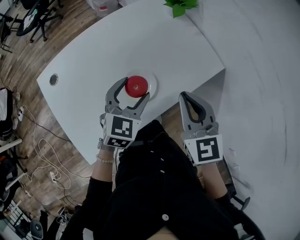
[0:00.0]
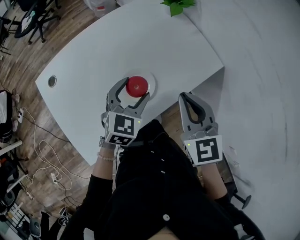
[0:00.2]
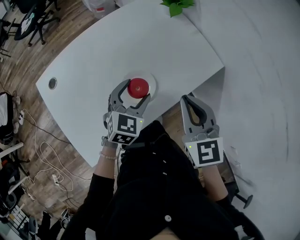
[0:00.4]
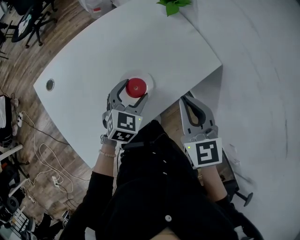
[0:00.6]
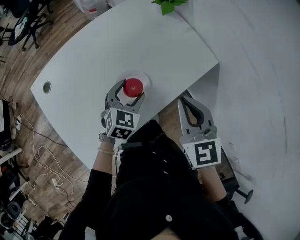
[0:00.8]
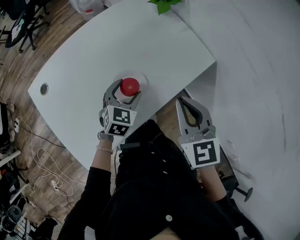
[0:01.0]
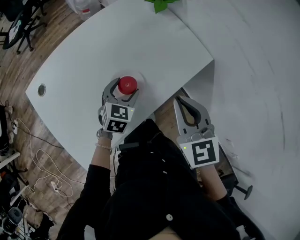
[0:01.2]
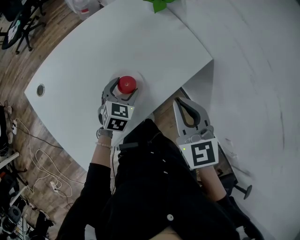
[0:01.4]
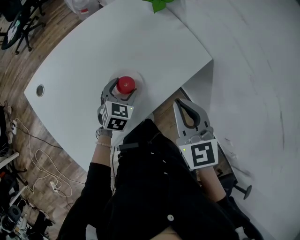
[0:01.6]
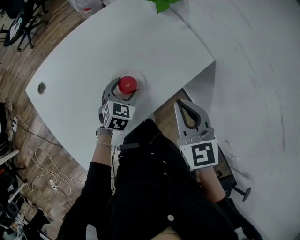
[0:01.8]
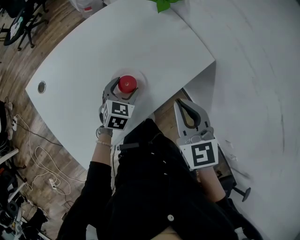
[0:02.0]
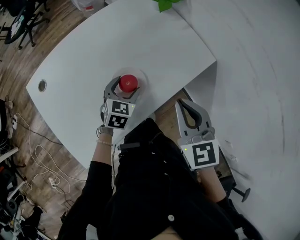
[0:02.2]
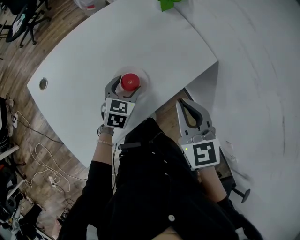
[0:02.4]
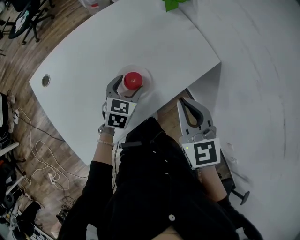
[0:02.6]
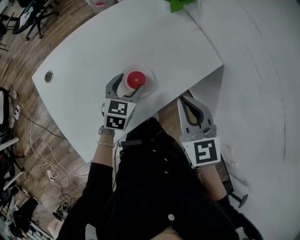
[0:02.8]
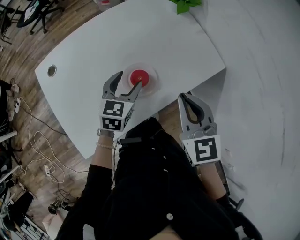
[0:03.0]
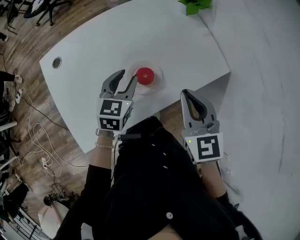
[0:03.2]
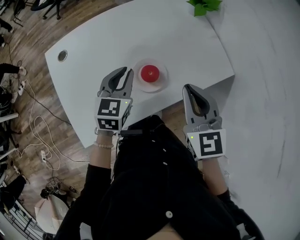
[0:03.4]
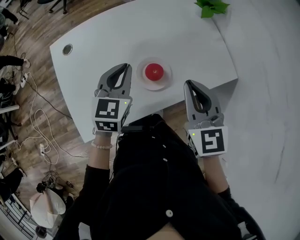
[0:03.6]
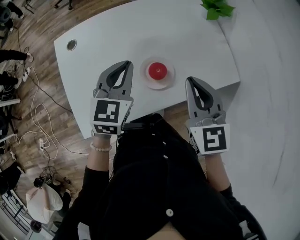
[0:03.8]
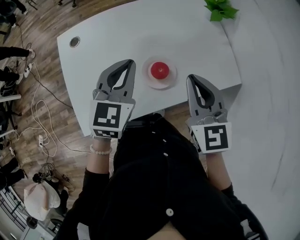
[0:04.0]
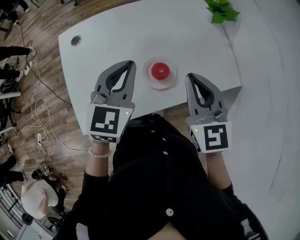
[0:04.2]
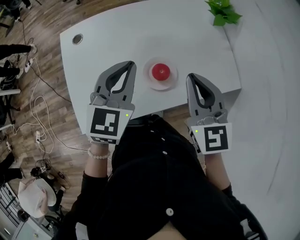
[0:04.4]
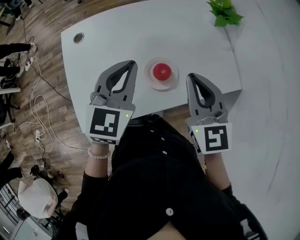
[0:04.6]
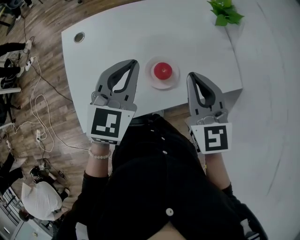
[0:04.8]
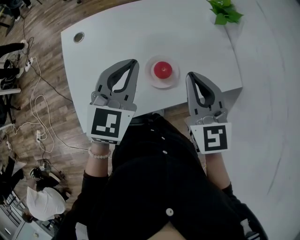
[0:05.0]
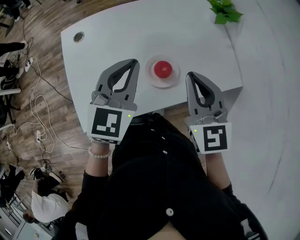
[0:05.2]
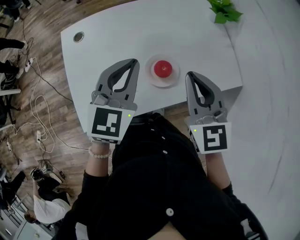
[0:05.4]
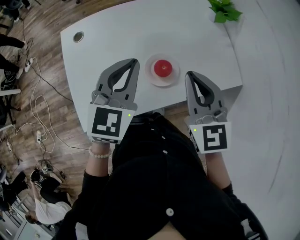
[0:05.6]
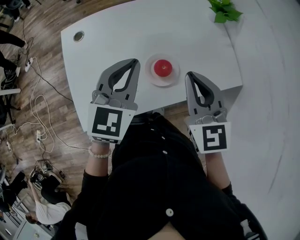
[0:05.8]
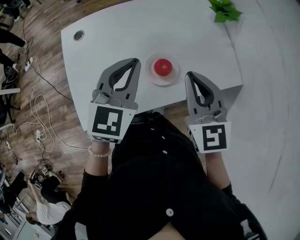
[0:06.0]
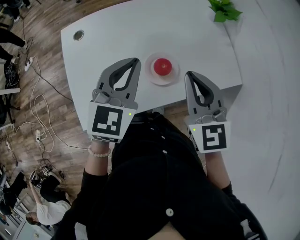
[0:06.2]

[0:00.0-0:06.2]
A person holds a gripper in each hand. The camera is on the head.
0.0 to 1.6 s: The left gripper heads downward, covering approximately 10 cm.
1.6 to 3.2 s: The left gripper moves upward and to the left, approximately 10 cm, rotates approximately 20 degrees, and closes up.
3.2 to 4.6 s: The left gripper is displaced upward by roughly 15 cm, and closes its fingers. The right gripper goes roughly 5 cm to the left.
4.6 to 6.2 s: The grippers make only small movements.

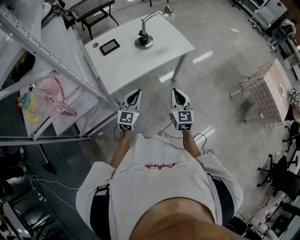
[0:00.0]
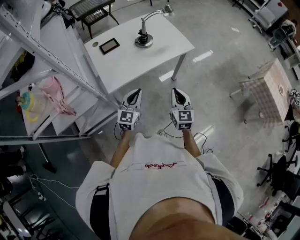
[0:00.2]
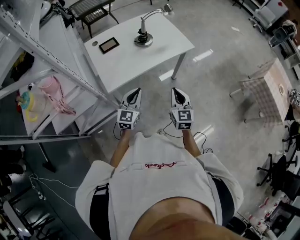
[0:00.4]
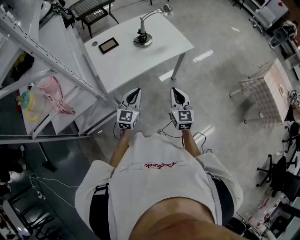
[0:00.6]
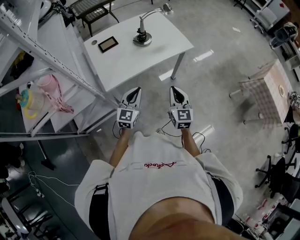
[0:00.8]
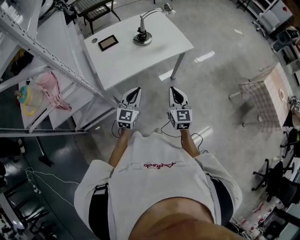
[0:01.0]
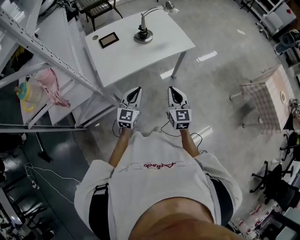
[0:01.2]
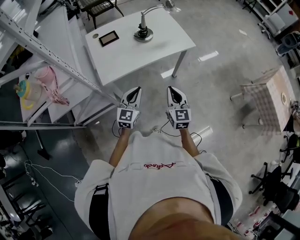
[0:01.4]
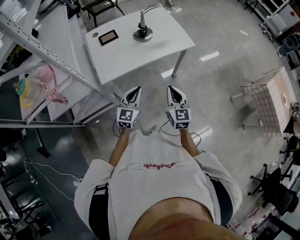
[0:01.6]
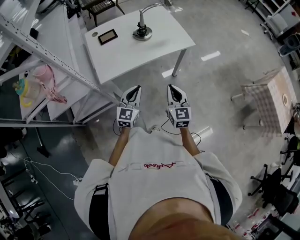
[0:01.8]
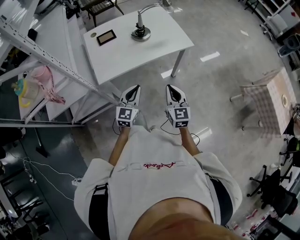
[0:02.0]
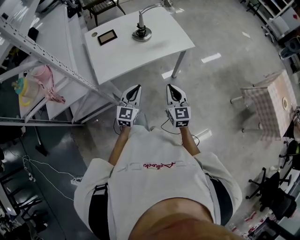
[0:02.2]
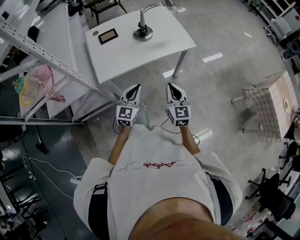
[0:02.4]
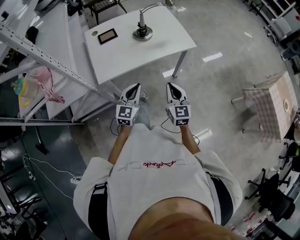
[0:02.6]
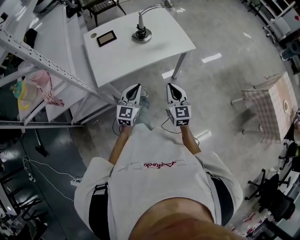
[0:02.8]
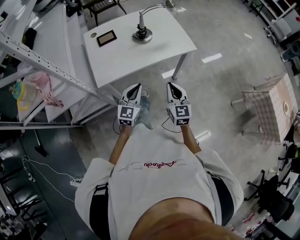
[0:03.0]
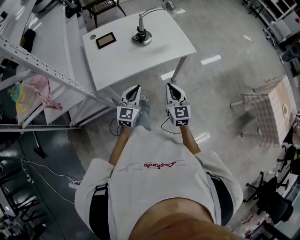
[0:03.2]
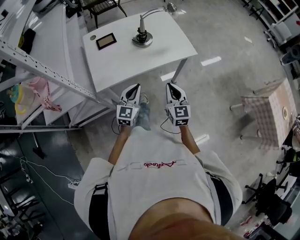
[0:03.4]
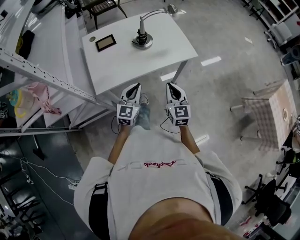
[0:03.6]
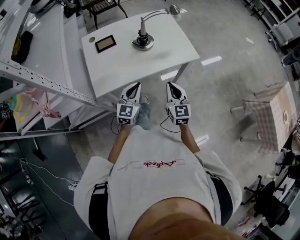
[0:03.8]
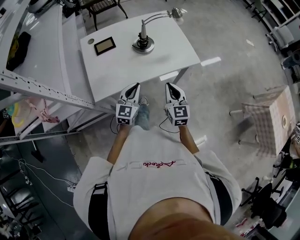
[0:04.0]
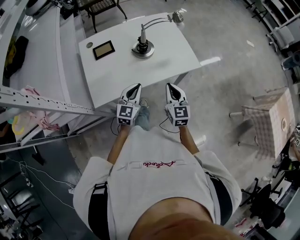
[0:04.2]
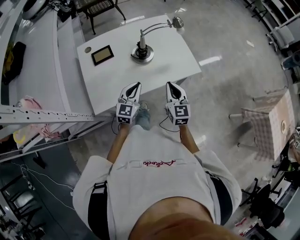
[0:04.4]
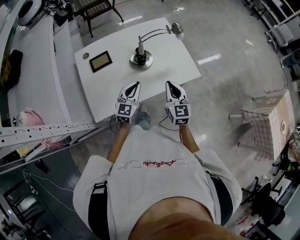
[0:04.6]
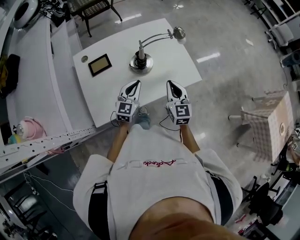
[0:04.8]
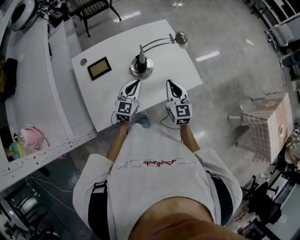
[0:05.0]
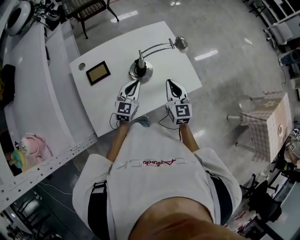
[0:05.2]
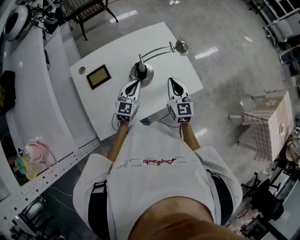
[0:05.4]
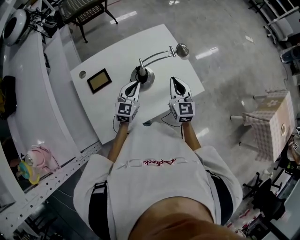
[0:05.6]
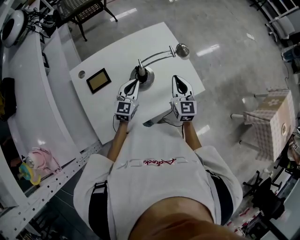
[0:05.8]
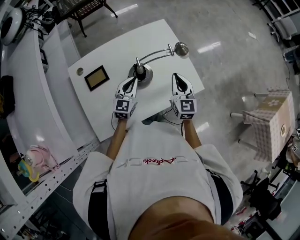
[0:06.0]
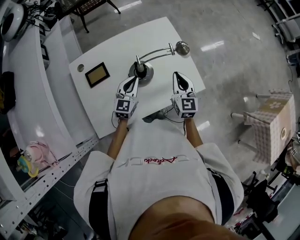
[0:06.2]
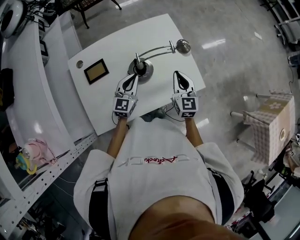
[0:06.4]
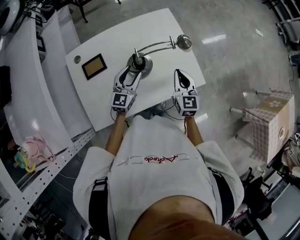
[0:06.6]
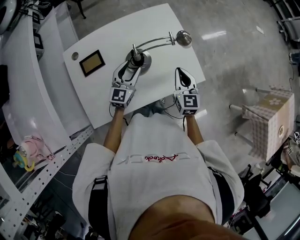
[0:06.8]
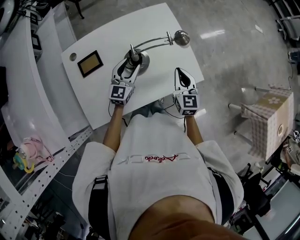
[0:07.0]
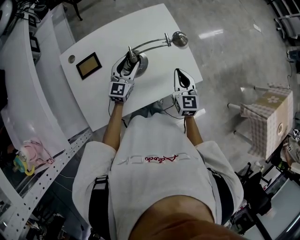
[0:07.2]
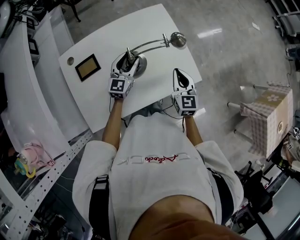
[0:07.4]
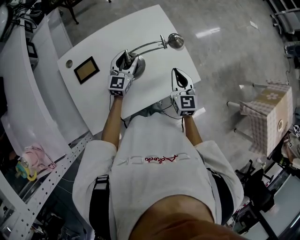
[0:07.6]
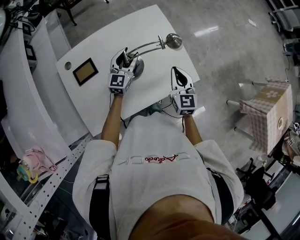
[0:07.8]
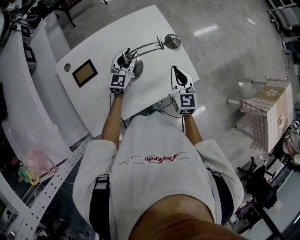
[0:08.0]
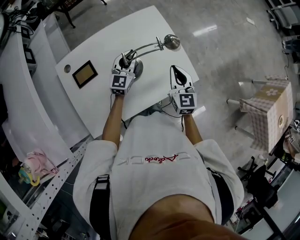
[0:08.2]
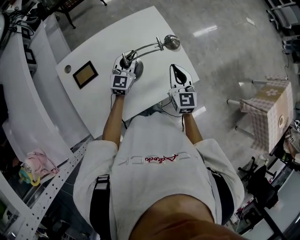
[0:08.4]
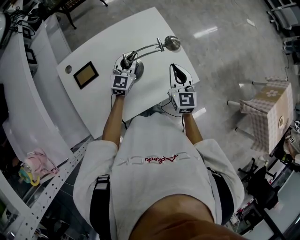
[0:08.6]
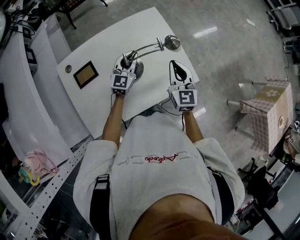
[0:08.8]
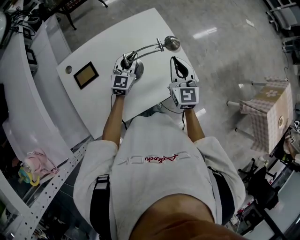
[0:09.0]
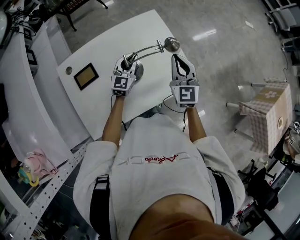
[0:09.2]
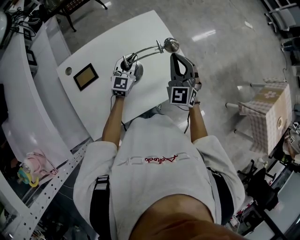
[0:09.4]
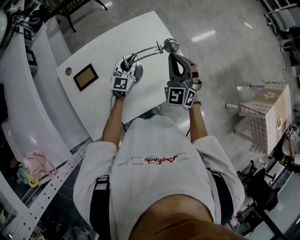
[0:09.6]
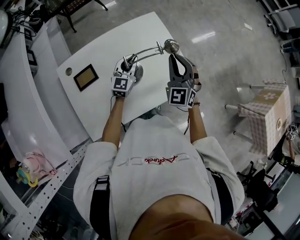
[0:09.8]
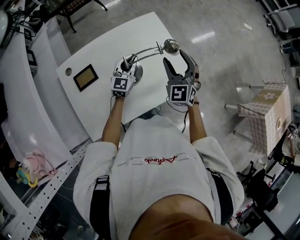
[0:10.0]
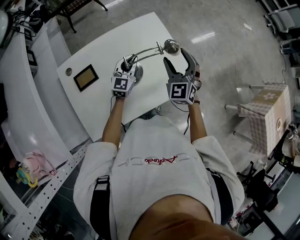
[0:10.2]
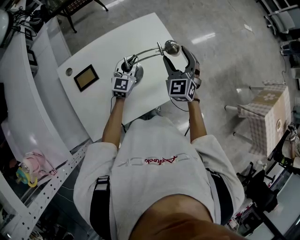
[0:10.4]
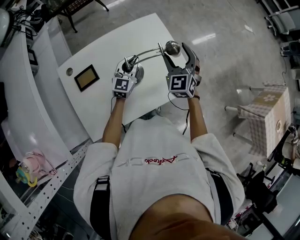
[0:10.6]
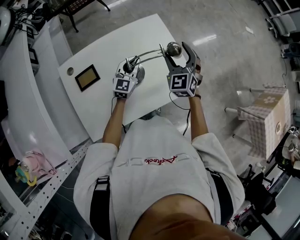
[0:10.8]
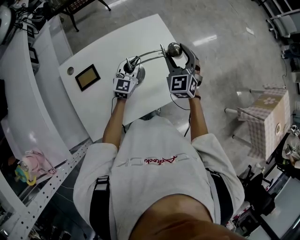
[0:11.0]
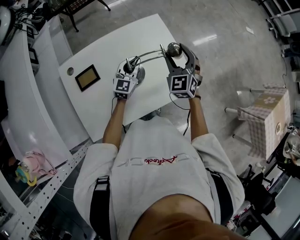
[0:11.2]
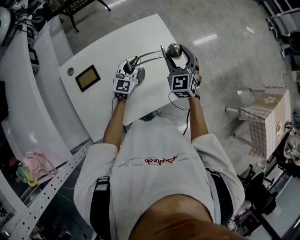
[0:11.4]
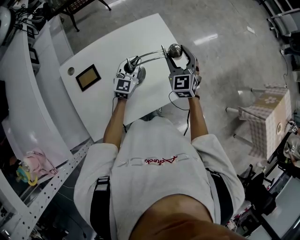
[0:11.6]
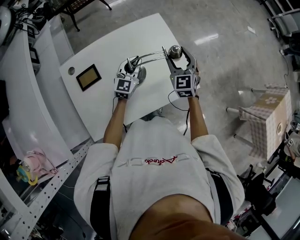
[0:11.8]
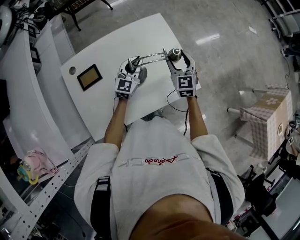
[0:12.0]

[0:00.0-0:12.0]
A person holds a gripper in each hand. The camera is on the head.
0.0 to 1.6 s: The left gripper travels to the right by roughly 5 cm.
1.6 to 3.0 s: Both grippers move forward, some 5 cm.
3.0 to 4.4 s: Both grippers travel together forward, about 20 cm.
4.4 to 6.0 s: Both grippers travel together forward, roughly 20 cm.
6.0 to 7.6 s: The left gripper is displaced forward by approximately 10 cm, and opens its fingers.
7.6 to 9.0 s: The left gripper closes. The right gripper travels upward by approximately 5 cm.
9.0 to 10.4 s: The right gripper changes its angle by approximately 30 degrees, and opens its fingers.
10.4 to 12.0 s: The right gripper shifts some 5 cm downward, and changes its angle by some 20 degrees.

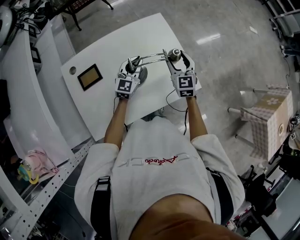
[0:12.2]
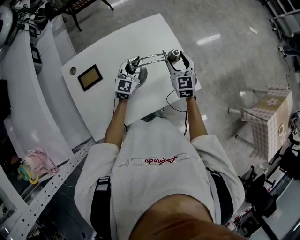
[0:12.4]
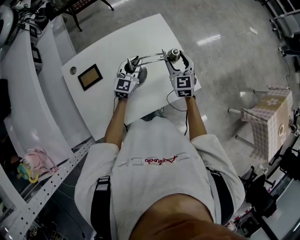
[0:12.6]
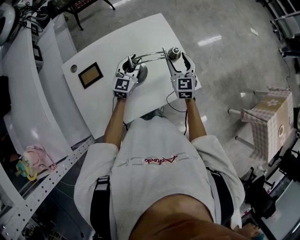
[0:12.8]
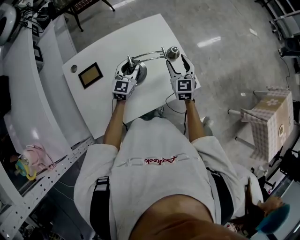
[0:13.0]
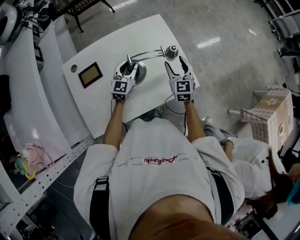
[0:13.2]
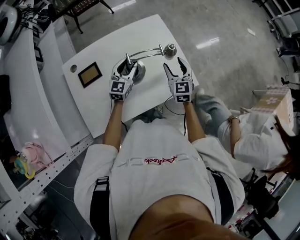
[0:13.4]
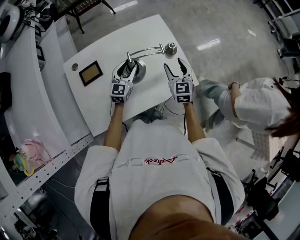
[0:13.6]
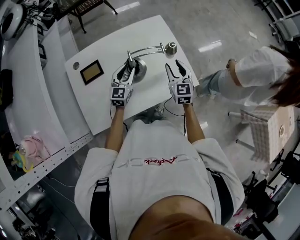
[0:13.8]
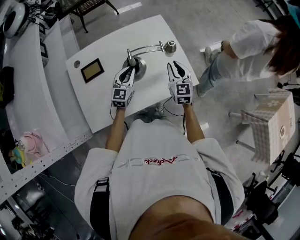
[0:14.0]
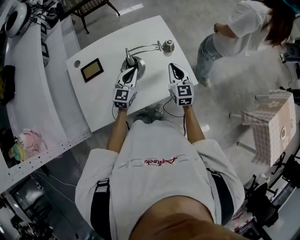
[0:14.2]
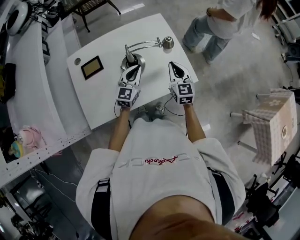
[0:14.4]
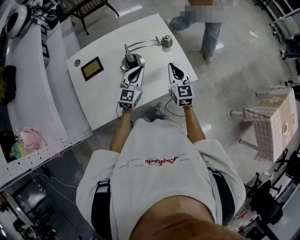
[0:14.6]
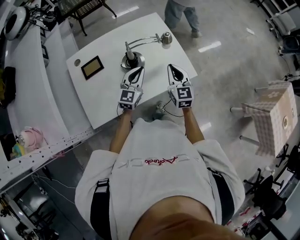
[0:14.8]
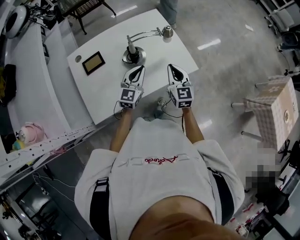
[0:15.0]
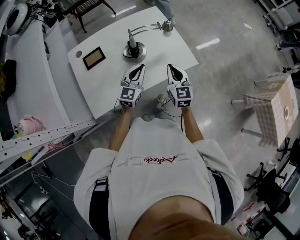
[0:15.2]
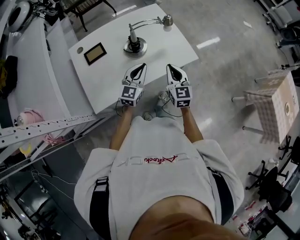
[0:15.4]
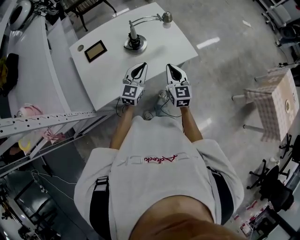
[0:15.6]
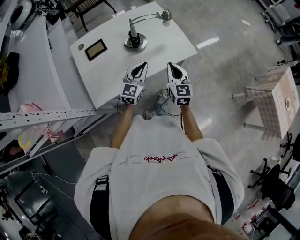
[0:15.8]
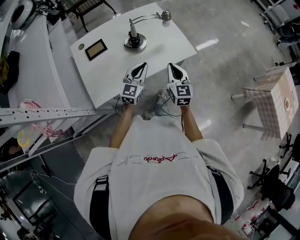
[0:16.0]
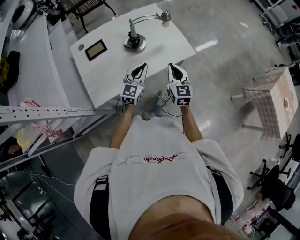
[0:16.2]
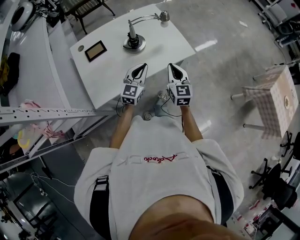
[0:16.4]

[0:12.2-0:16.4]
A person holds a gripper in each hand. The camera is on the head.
12.2 to 13.6 s: Both grippers travel together backward, about 5 cm. The left gripper opens.
13.6 to 15.0 s: The left gripper heads backward and to the right, covering approximately 15 cm, and closes. The right gripper moves backward, about 15 cm, and closes.
15.0 to 16.4 s: The grippers both shift backward by some 10 cm.

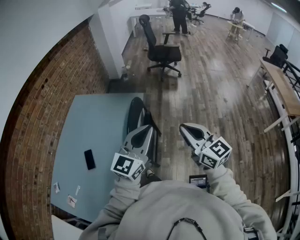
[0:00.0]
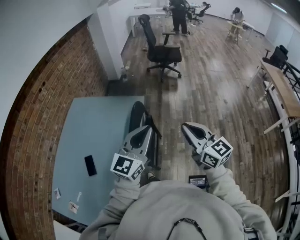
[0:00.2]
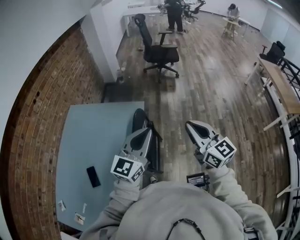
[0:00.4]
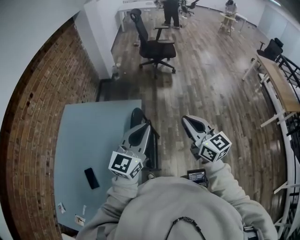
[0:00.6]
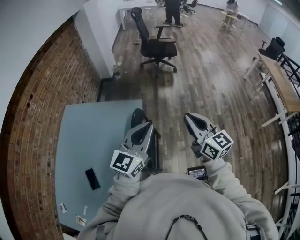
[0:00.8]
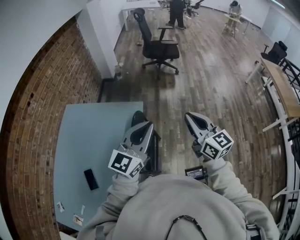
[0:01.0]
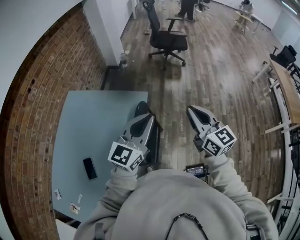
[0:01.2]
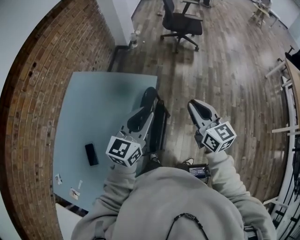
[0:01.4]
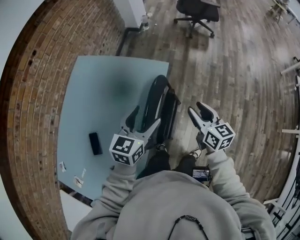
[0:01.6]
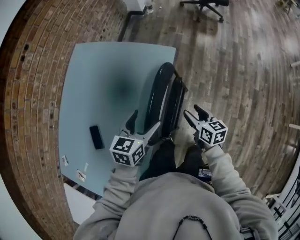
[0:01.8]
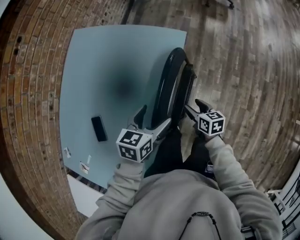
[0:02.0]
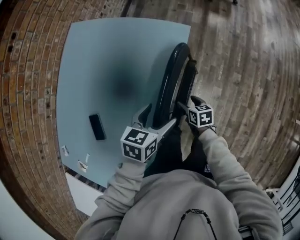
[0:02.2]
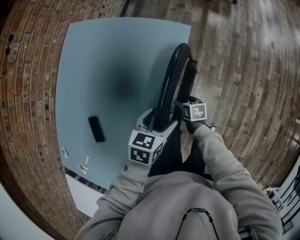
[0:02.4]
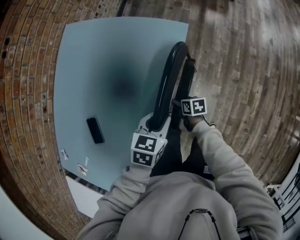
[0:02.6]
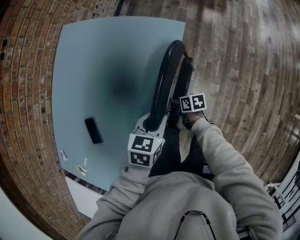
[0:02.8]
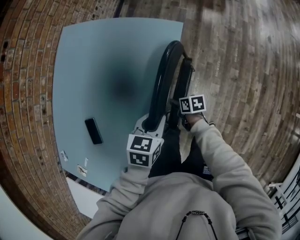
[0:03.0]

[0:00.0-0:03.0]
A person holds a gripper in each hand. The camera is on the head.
0.0 to 1.6 s: The right gripper moves forward and downward, roughly 35 cm, changes its angle by some 30 degrees, and opens. The left gripper shifts roughly 35 cm forward, downward and to the left, points its fingers about 30 degrees further downward, and opens.
1.6 to 3.0 s: The left gripper goes approximately 20 cm downward, turns by approximately 30 degrees, and closes, while the right gripper moves downward and to the left, roughly 40 cm, and changes its angle by approximately 50 degrees.
